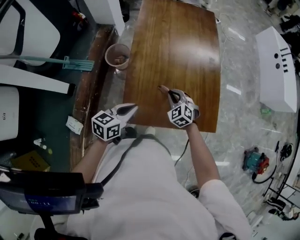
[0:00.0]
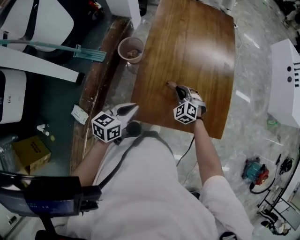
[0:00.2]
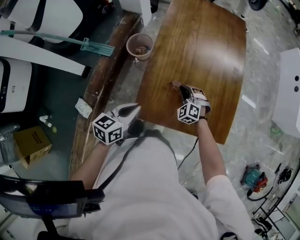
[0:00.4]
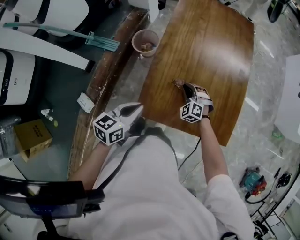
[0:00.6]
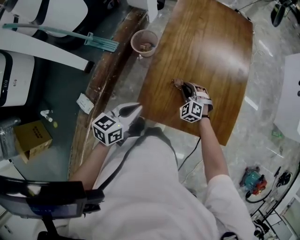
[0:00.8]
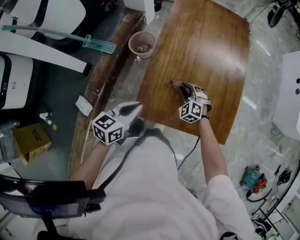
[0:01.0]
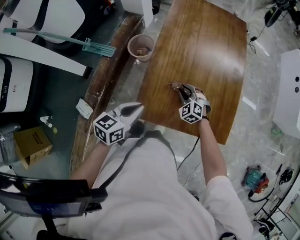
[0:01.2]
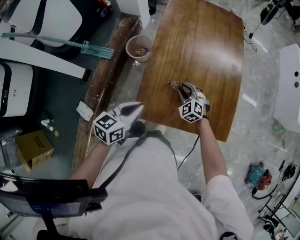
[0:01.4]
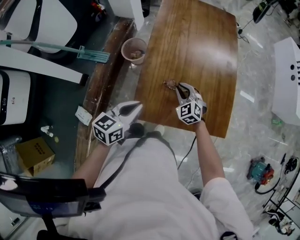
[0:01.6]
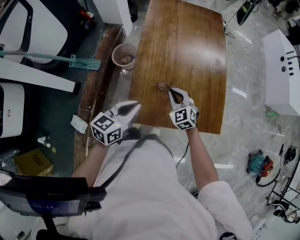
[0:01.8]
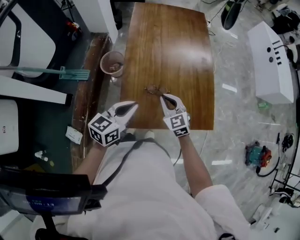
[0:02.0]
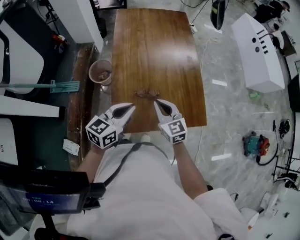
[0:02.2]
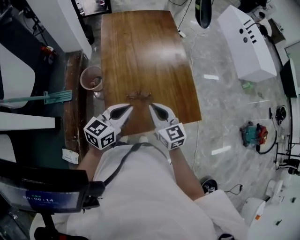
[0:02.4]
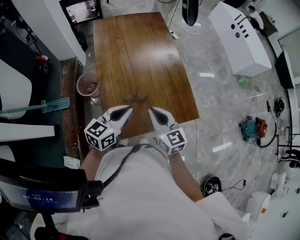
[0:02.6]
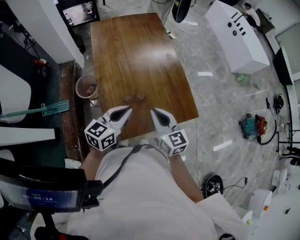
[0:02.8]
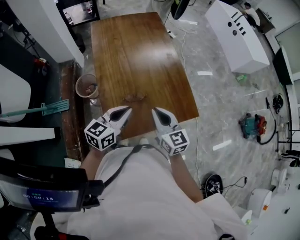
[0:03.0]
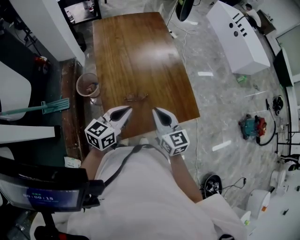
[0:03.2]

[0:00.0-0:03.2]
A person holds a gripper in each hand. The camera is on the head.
0:01.6 to 0:03.2: The right gripper is displaced upward, backward and to the right by approximately 25 cm, and twists roughly 50 degrees clockwise, seen from behind, while the left gripper moves to the right and upward, roughly 10 cm, and rotates approximately 30 degrees.

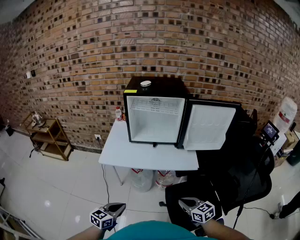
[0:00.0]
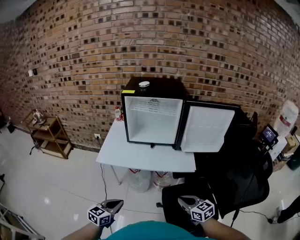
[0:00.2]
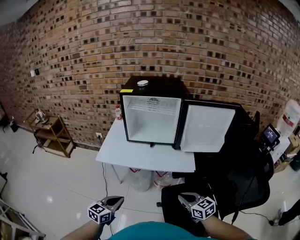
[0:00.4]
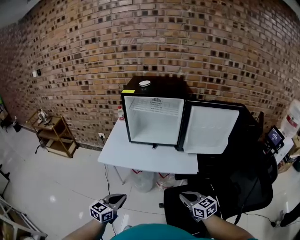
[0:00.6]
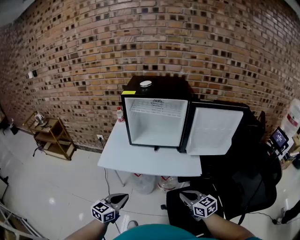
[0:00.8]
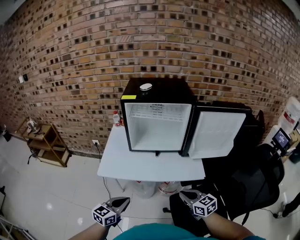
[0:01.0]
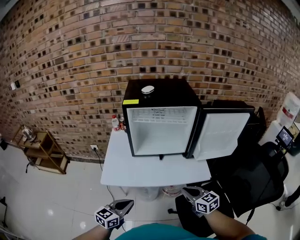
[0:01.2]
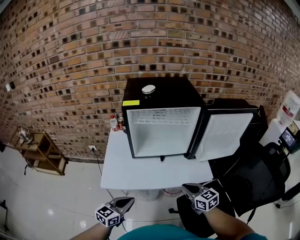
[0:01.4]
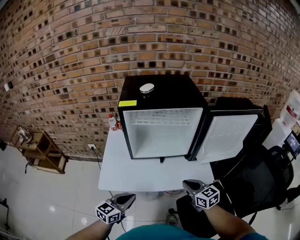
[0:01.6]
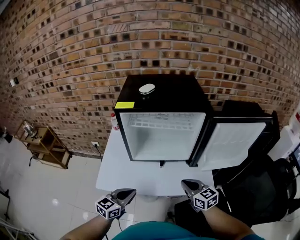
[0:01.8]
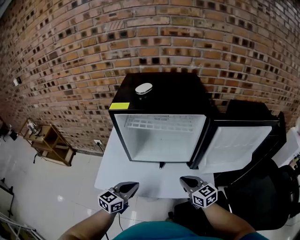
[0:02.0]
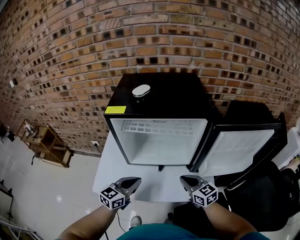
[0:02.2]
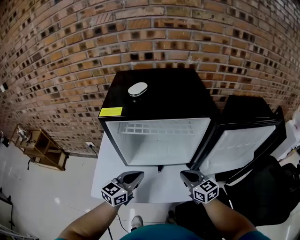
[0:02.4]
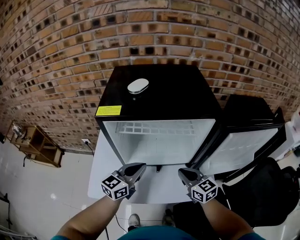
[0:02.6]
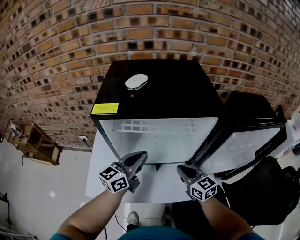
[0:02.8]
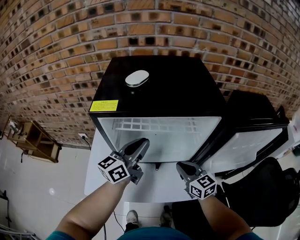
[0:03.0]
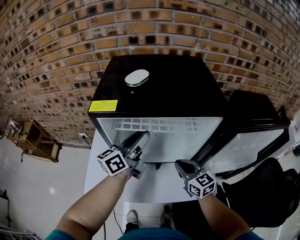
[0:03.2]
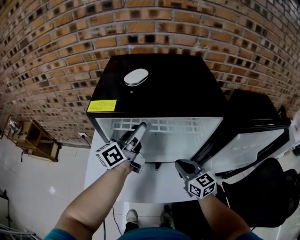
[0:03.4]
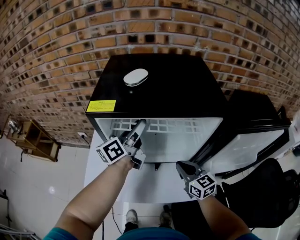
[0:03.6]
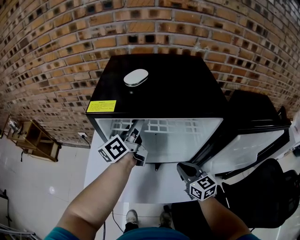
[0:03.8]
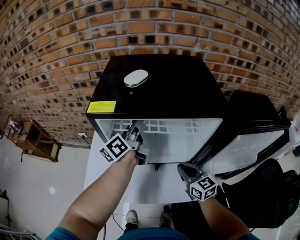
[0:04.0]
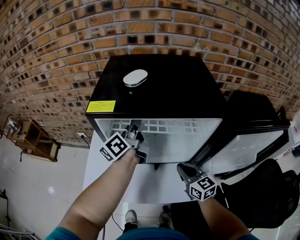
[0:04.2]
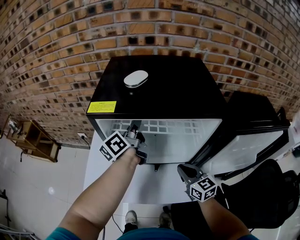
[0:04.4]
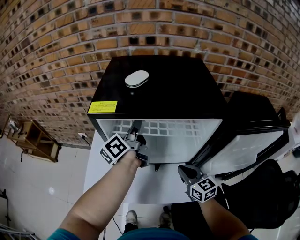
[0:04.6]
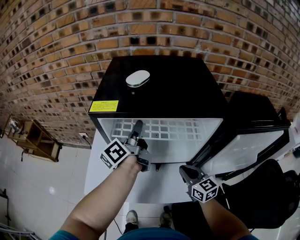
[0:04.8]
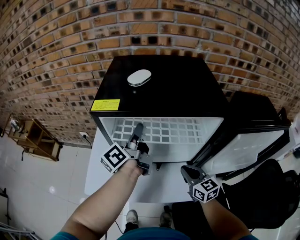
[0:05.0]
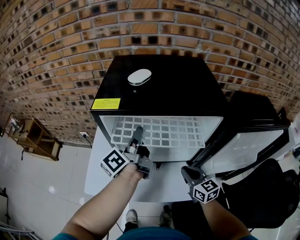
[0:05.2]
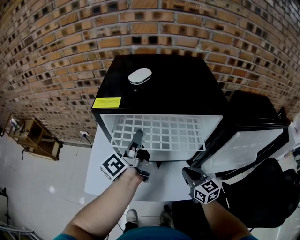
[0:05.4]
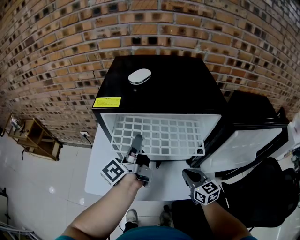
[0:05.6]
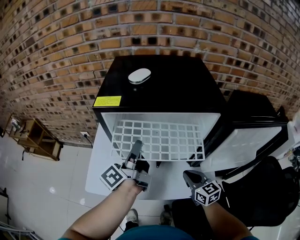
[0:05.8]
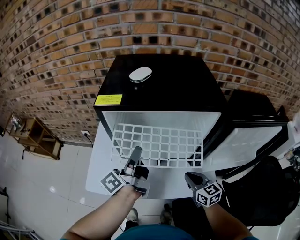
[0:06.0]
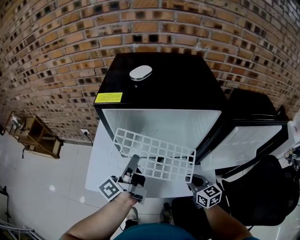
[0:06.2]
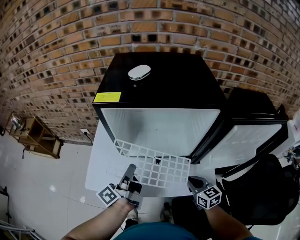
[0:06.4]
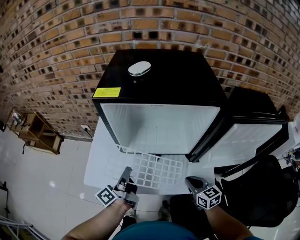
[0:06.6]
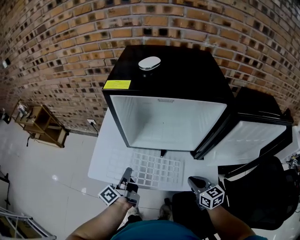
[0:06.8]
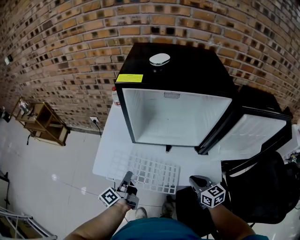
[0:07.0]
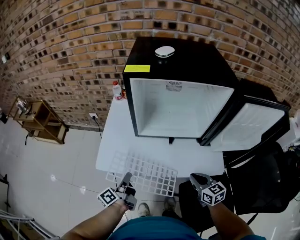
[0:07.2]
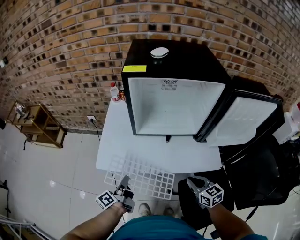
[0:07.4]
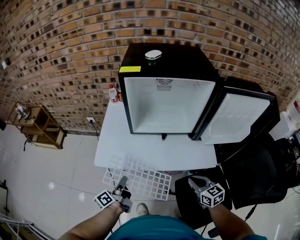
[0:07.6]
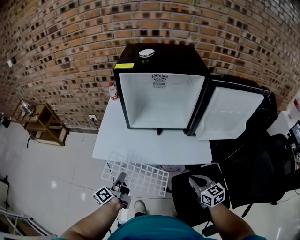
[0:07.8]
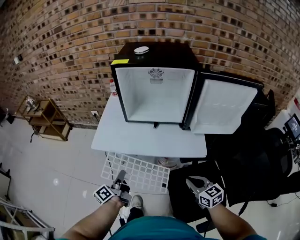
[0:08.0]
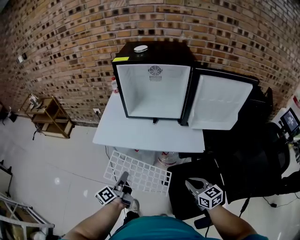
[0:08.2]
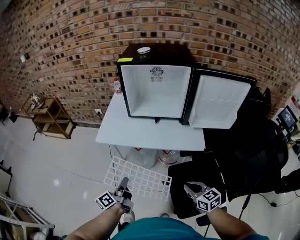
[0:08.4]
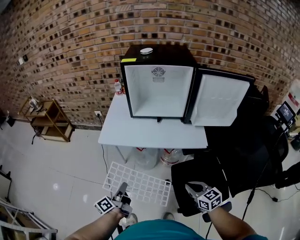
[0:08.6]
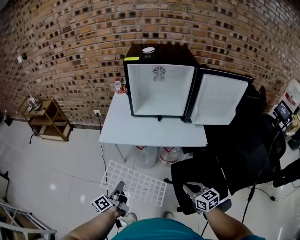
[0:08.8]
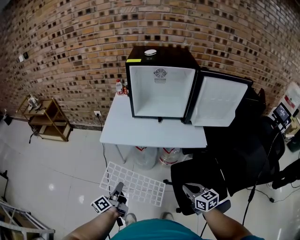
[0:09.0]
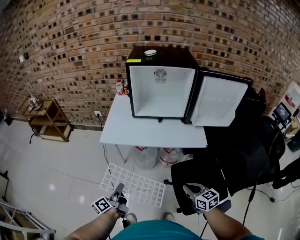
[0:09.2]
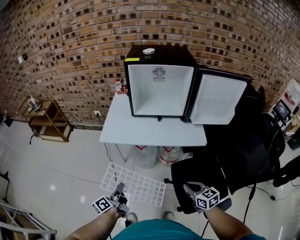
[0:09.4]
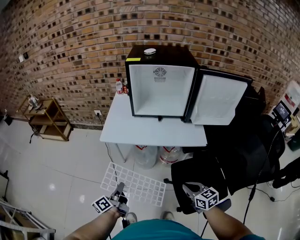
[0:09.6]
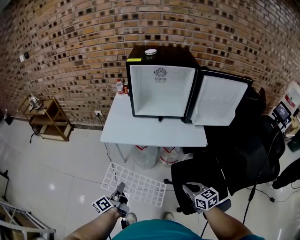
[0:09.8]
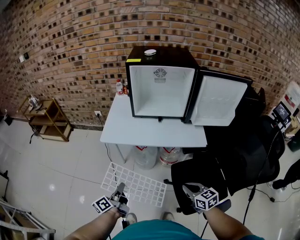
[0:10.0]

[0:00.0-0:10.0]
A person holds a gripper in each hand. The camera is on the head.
0:00.0 to 0:01.4: The two grippers go approximately 20 cm forward.
0:01.4 to 0:02.8: Both grippers travel together forward, roughly 25 cm.
0:02.8 to 0:04.2: The left gripper heads forward, covering approximately 15 cm, turns by approximately 40 degrees, and opens.
0:04.2 to 0:05.8: The left gripper is displaced backward by approximately 15 cm, and swivels approximately 20 degrees; the right gripper heads backward, covering approximately 5 cm.
0:05.8 to 0:07.2: The left gripper heads downward, backward and to the left, covering approximately 30 cm; the right gripper is displaced backward by about 10 cm.
0:07.2 to 0:08.6: Both grippers move backward, about 25 cm.
0:08.6 to 0:10.0: The left gripper changes place by about 5 cm.

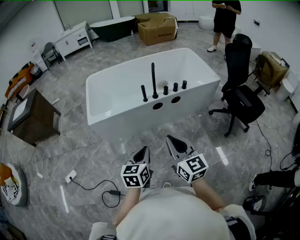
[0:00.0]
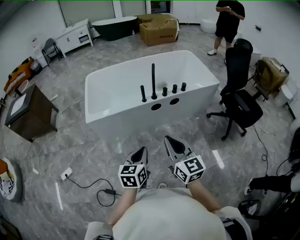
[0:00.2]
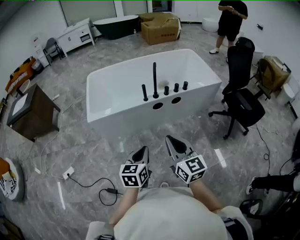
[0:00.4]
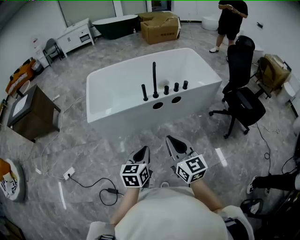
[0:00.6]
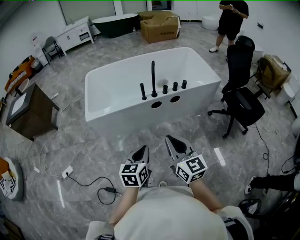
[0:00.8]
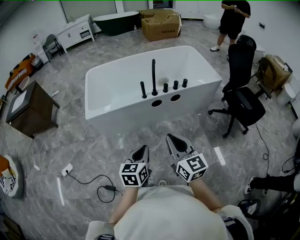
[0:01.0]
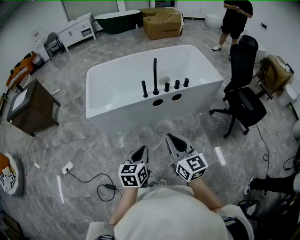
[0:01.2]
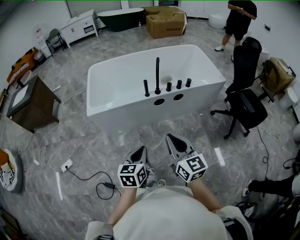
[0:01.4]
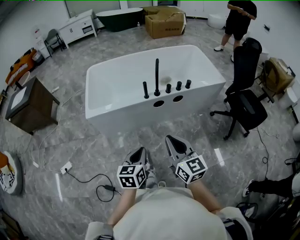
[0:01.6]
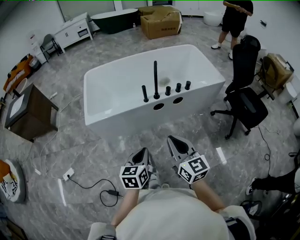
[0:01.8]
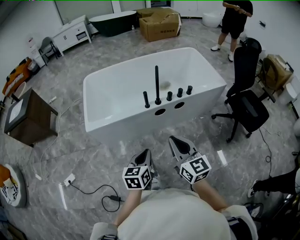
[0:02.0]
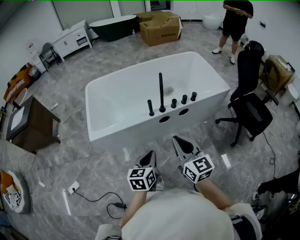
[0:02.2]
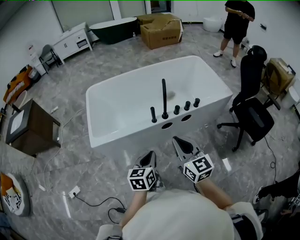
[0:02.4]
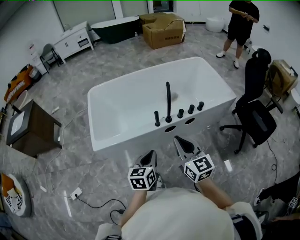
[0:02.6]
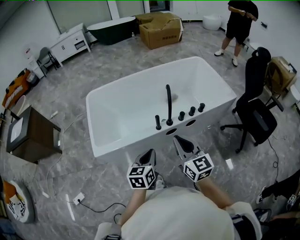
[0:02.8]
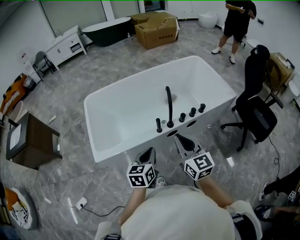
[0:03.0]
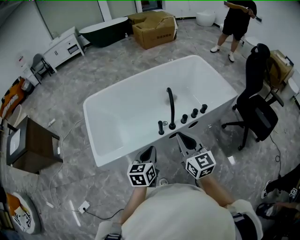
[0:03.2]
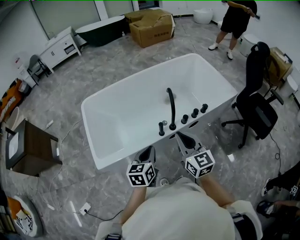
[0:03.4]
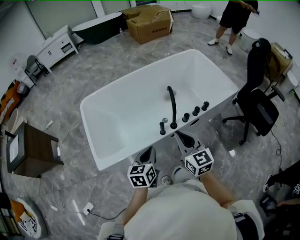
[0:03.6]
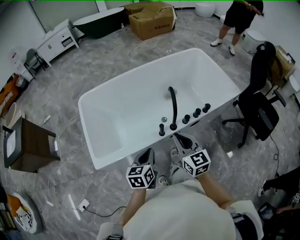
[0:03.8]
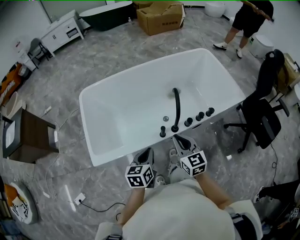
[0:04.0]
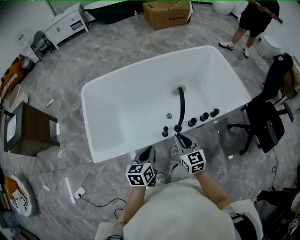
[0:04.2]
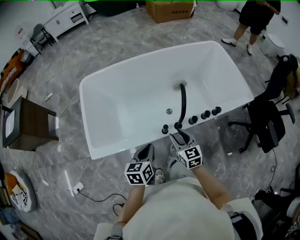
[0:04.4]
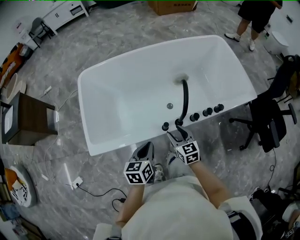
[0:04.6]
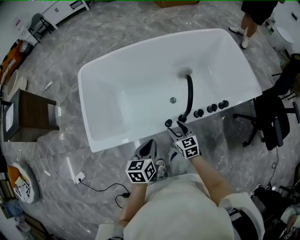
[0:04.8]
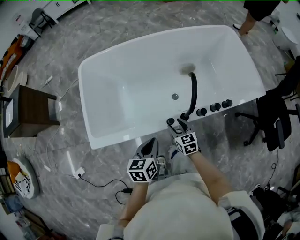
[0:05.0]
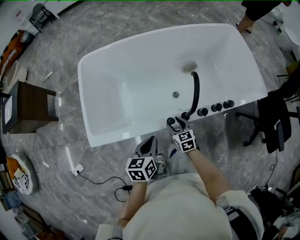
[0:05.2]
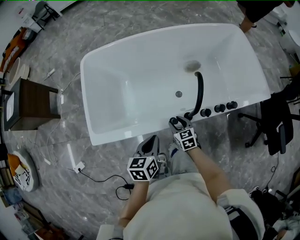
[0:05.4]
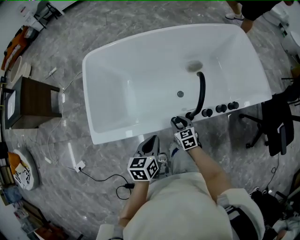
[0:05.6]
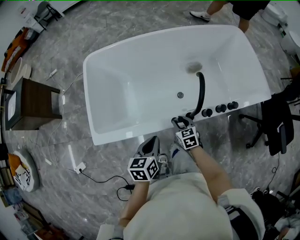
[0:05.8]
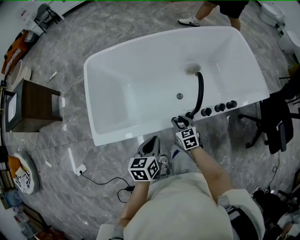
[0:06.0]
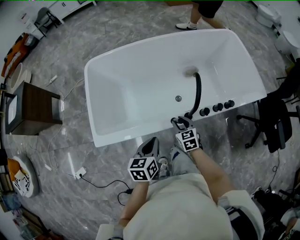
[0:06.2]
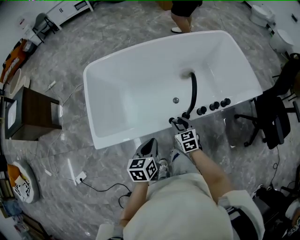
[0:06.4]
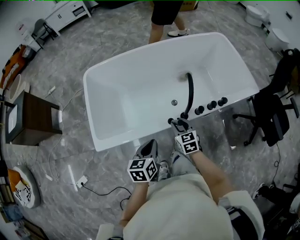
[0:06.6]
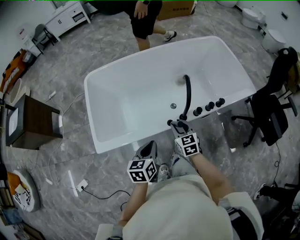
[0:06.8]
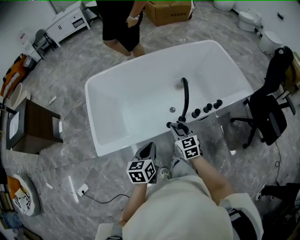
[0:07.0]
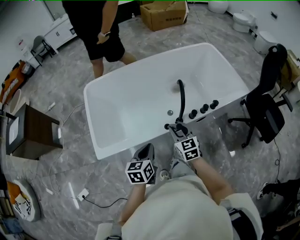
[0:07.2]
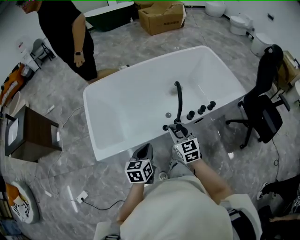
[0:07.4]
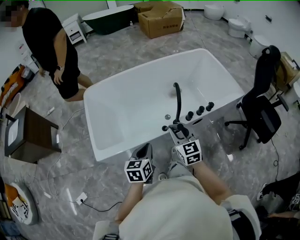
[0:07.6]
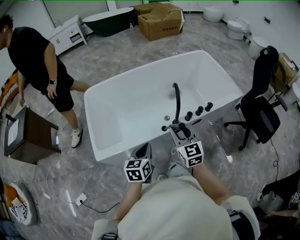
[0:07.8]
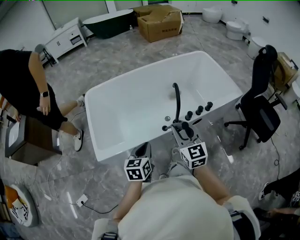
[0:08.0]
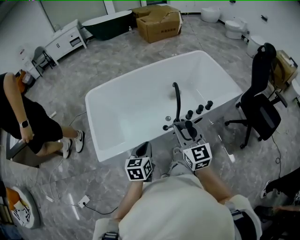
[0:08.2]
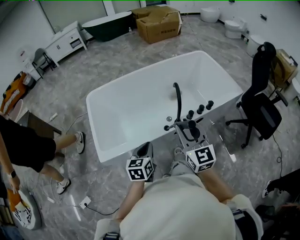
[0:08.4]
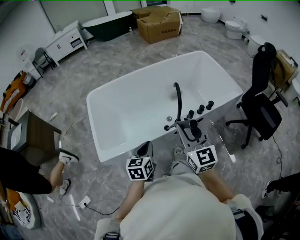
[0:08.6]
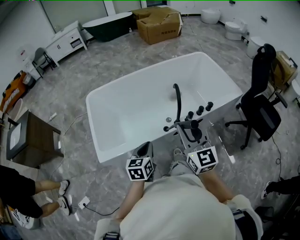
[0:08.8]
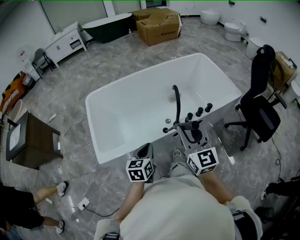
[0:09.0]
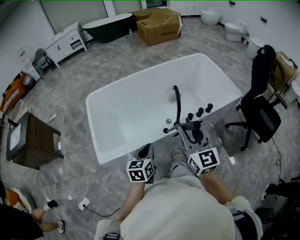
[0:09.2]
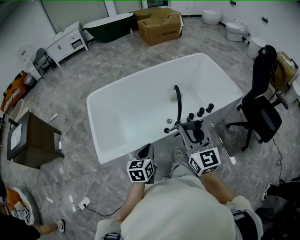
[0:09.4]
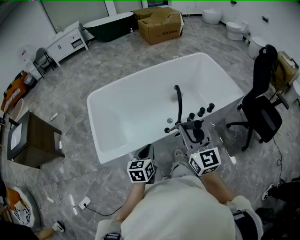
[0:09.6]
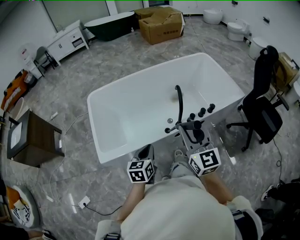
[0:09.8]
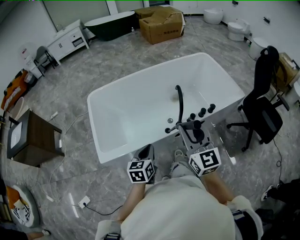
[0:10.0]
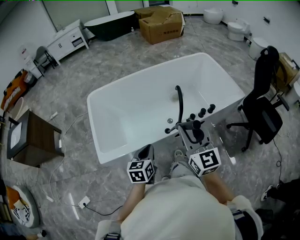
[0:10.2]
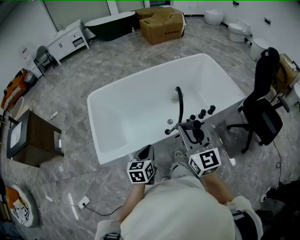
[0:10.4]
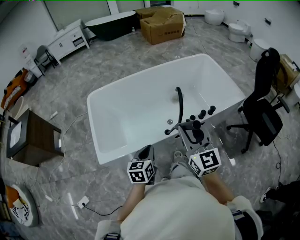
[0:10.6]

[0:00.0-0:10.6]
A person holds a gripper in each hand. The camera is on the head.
0:00.0 to 0:01.6: The grippers move only a little.
0:01.6 to 0:03.0: Both grippers travel together forward, roughly 30 cm.
0:03.0 to 0:04.6: The left gripper goes roughly 15 cm forward and downward; the right gripper goes approximately 30 cm downward and forward, rotates roughly 20 degrees, and opens up.
0:04.6 to 0:06.0: The right gripper heads downward, covering roughly 10 cm.
0:06.0 to 0:07.6: The left gripper is displaced backward and upward by approximately 10 cm. Meanwhile the right gripper goes approximately 25 cm upward and backward, and changes its angle by approximately 30 degrees.
0:07.6 to 0:09.0: The right gripper goes approximately 15 cm upward and backward.
0:09.0 to 0:10.6: The grippers move only a little.
